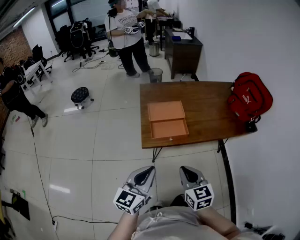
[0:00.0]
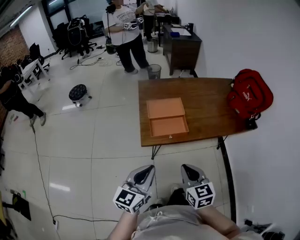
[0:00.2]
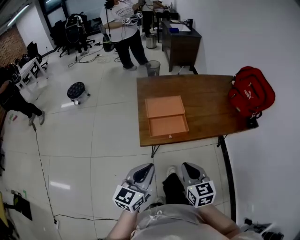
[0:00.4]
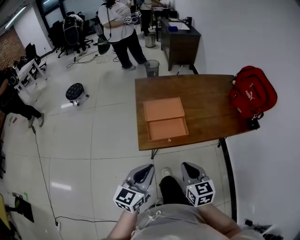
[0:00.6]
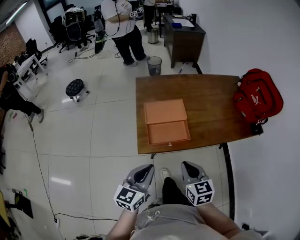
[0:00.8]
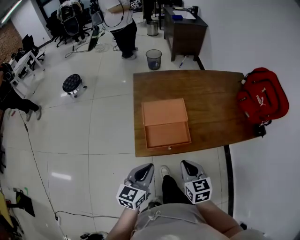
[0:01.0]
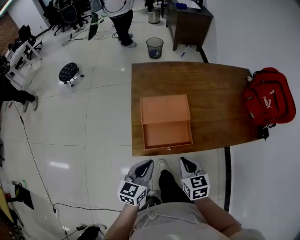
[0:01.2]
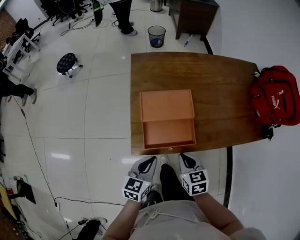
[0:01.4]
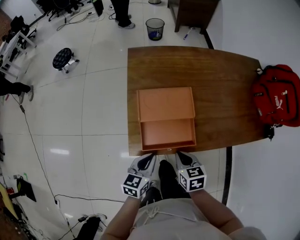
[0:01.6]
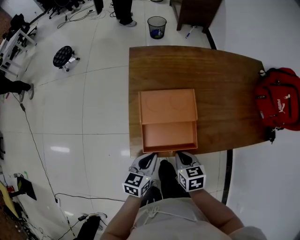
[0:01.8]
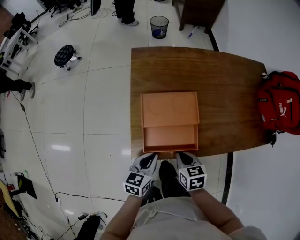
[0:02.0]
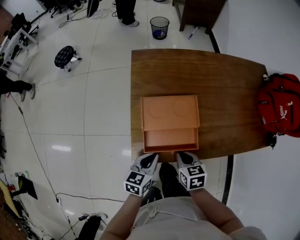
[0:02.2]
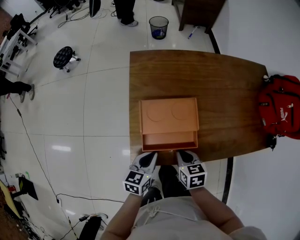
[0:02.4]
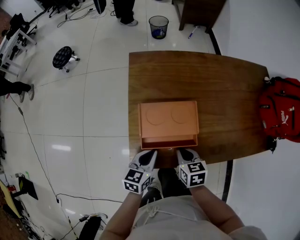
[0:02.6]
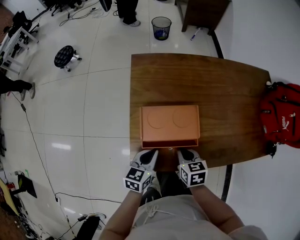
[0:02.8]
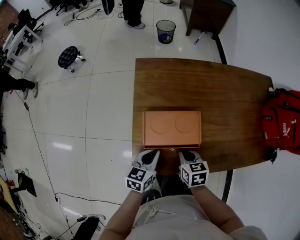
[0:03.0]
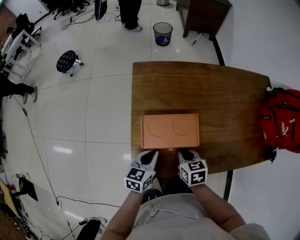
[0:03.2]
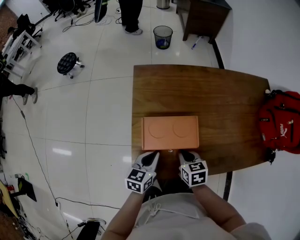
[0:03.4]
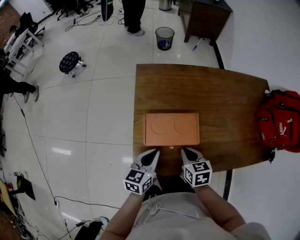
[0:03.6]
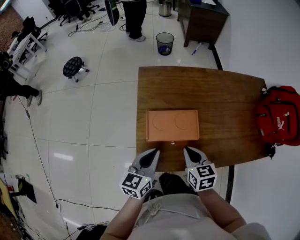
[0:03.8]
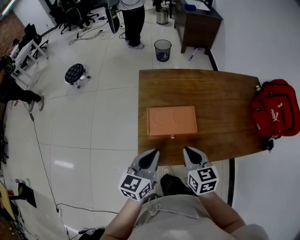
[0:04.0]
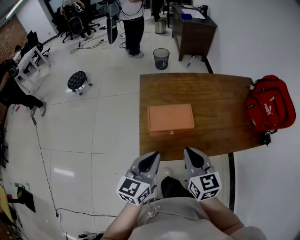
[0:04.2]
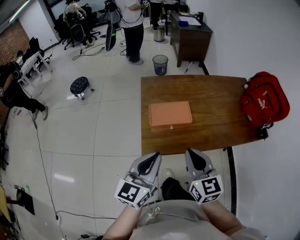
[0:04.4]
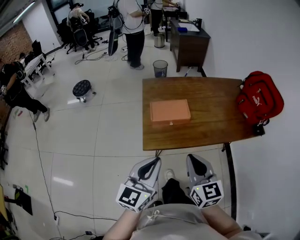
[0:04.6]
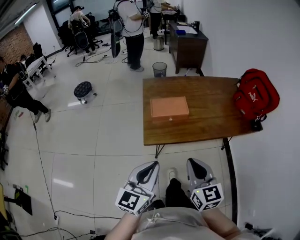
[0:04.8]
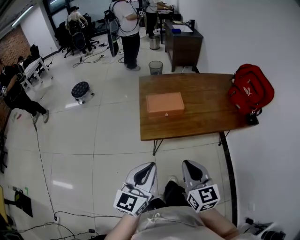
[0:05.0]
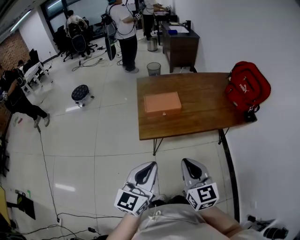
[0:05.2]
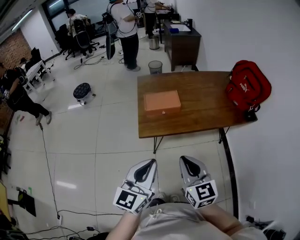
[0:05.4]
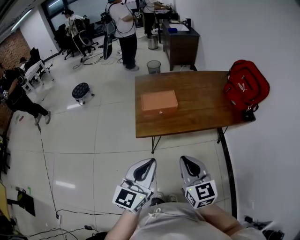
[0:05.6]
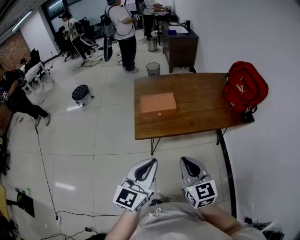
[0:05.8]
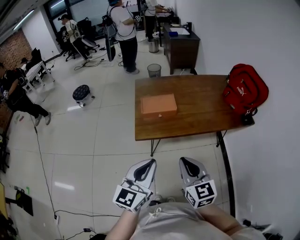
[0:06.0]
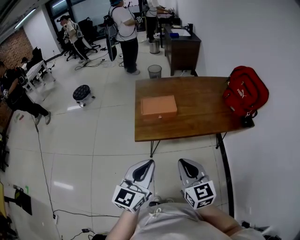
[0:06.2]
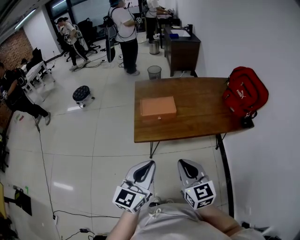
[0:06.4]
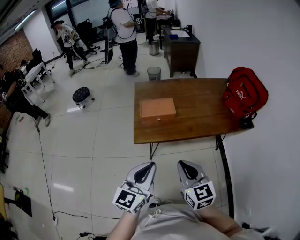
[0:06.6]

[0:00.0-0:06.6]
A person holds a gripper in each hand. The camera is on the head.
0:00.0 to 0:01.6: The right gripper is displaced forward and downward by roughly 30 cm, and rotates about 30 degrees. Meanwhile the left gripper shifts roughly 30 cm downward and forward, and turns by approximately 30 degrees.
0:01.6 to 0:03.2: Both grippers travel together forward, approximately 15 cm.
0:03.2 to 0:05.0: Both grippers move backward and upward, some 40 cm. The right gripper tilts its fingers roughly 40 degrees upward, while the left gripper rotates roughly 30 degrees.
0:05.0 to 0:06.6: The left gripper heads to the right, covering roughly 5 cm.

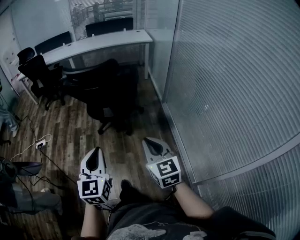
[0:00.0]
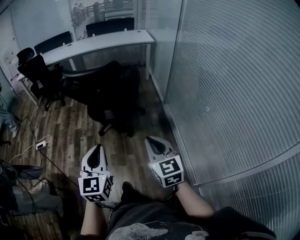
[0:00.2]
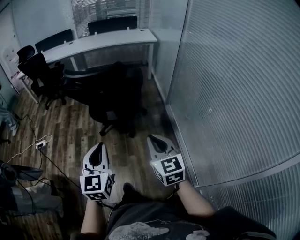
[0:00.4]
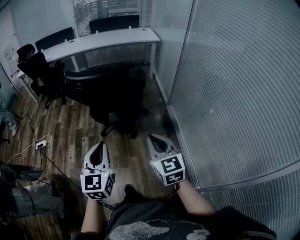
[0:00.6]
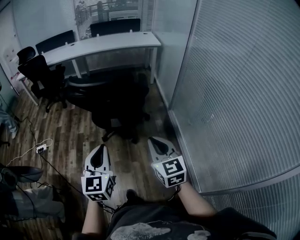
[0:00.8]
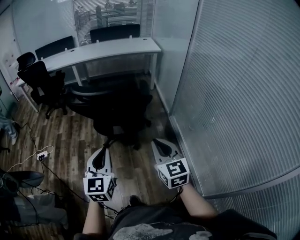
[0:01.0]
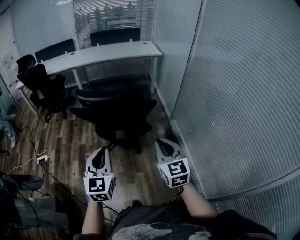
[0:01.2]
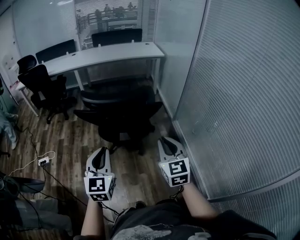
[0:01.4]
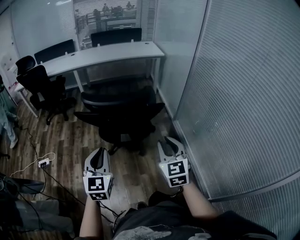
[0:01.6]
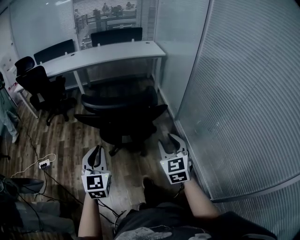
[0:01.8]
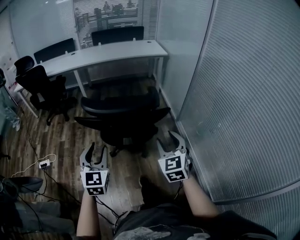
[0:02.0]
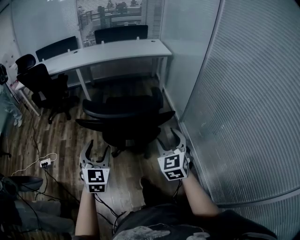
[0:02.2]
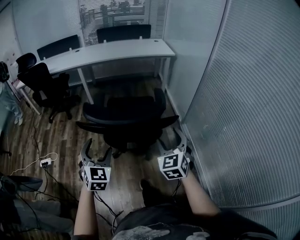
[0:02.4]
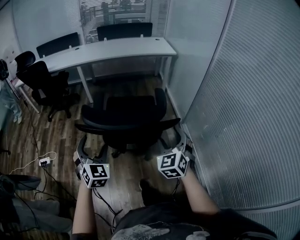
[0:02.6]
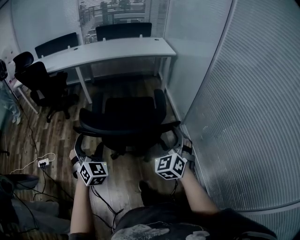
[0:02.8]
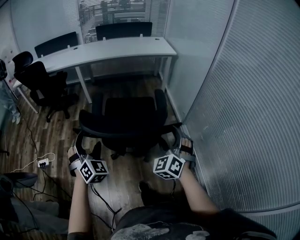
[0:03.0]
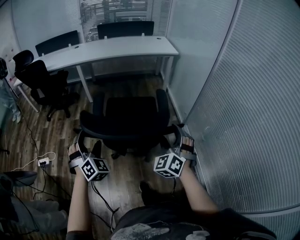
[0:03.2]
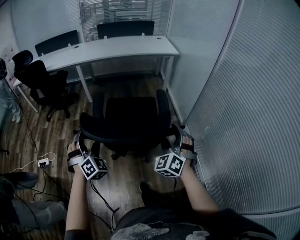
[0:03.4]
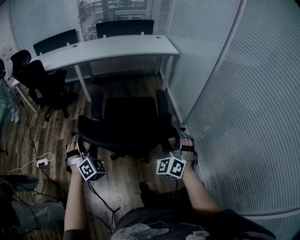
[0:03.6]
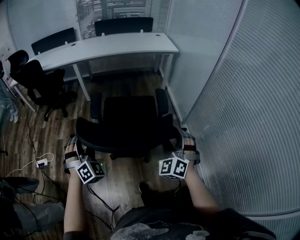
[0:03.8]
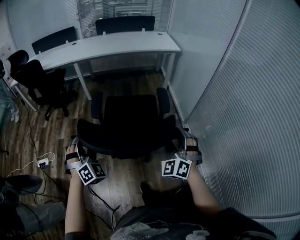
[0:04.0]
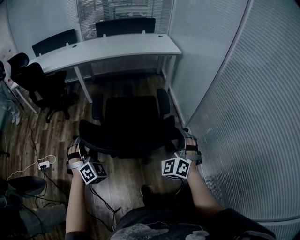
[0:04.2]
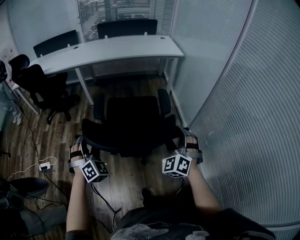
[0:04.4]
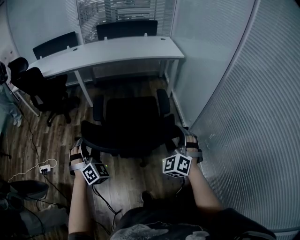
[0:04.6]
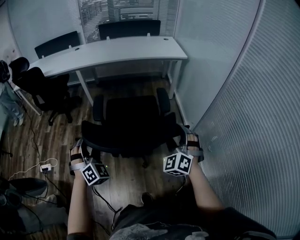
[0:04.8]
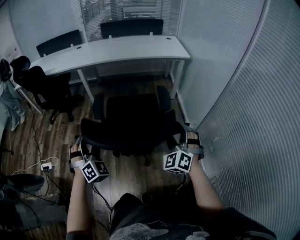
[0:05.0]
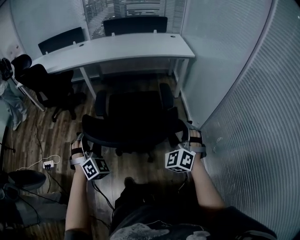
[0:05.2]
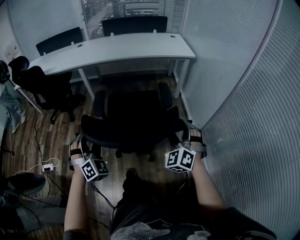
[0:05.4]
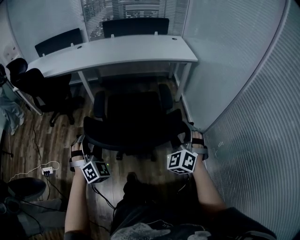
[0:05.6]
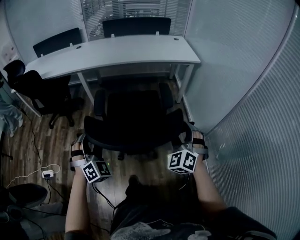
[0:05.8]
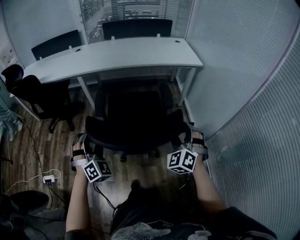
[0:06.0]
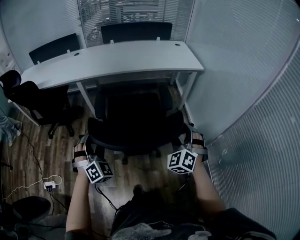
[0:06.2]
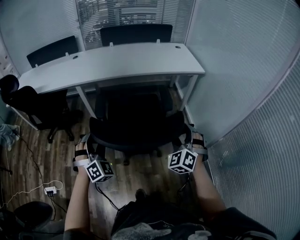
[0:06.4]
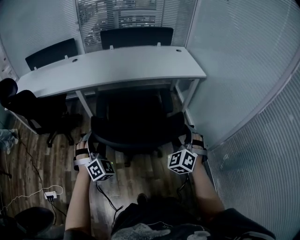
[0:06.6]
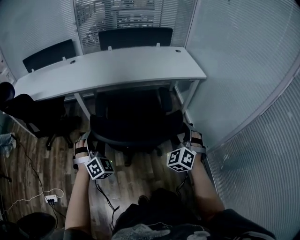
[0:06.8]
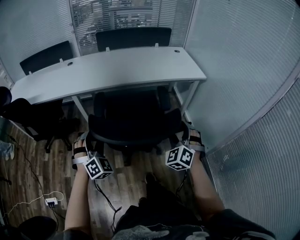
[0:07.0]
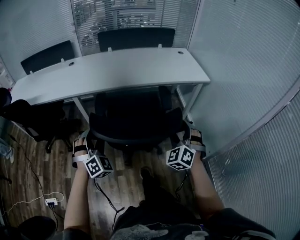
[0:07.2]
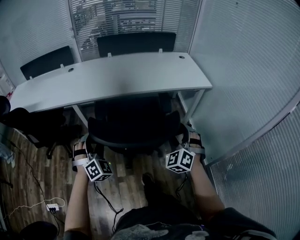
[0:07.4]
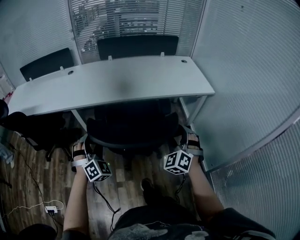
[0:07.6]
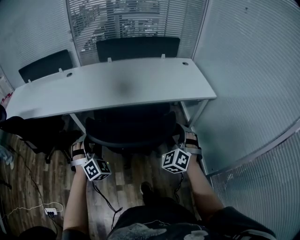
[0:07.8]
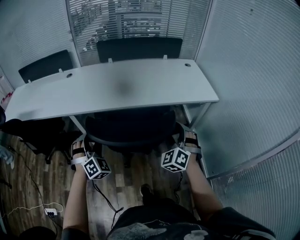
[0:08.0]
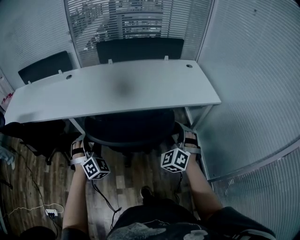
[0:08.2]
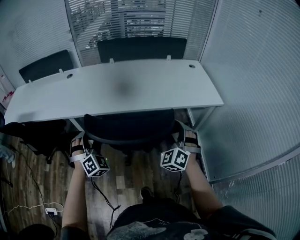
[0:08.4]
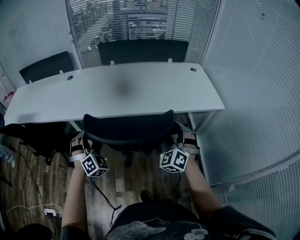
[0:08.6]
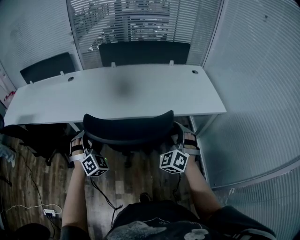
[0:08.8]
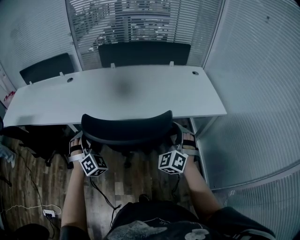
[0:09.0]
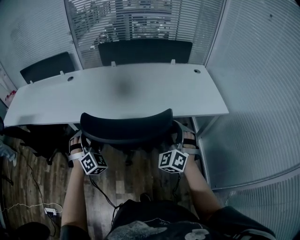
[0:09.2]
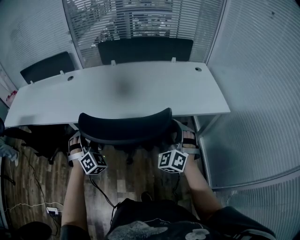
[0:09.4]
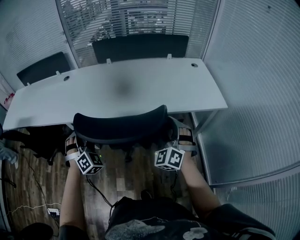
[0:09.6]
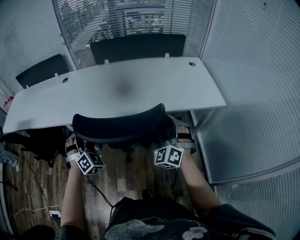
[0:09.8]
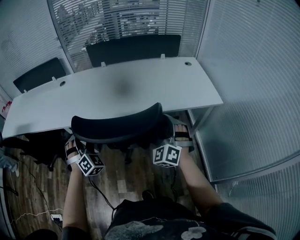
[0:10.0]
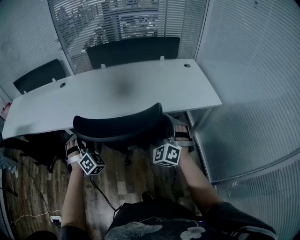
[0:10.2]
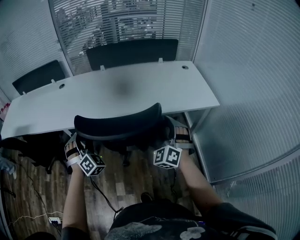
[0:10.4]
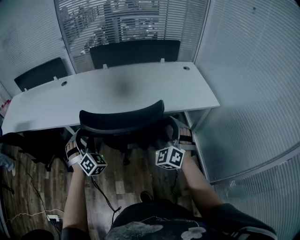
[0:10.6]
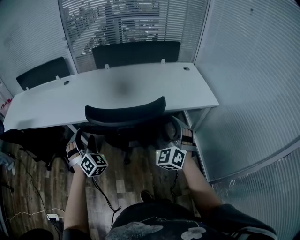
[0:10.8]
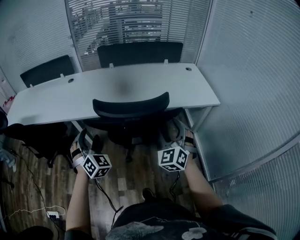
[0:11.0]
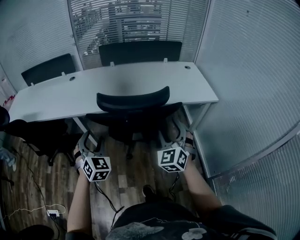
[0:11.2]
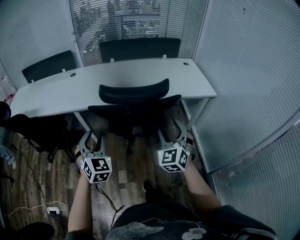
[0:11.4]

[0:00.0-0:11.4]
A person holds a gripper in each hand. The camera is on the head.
0:00.0 to 0:01.4: The right gripper heads forward, covering roughly 20 cm, while the left gripper goes roughly 25 cm forward and to the left.
0:01.4 to 0:02.8: The left gripper shifts about 25 cm forward and to the left, turns by approximately 40 degrees, and opens. Meanwhile the right gripper goes about 20 cm forward, rotates roughly 40 degrees, and opens.
0:02.8 to 0:04.2: The grippers both shift forward by approximately 10 cm. The left gripper swivels some 20 degrees.
0:04.2 to 0:05.6: The grippers both shift forward by roughly 20 cm.
0:05.6 to 0:07.2: The two grippers go approximately 35 cm forward.
0:07.2 to 0:08.6: Both grippers move forward, about 25 cm.
0:08.6 to 0:10.0: The right gripper moves forward, some 5 cm.
0:10.0 to 0:11.4: The two grippers go some 20 cm backward. The right gripper changes its angle by approximately 20 degrees. The left gripper swivels approximately 30 degrees.

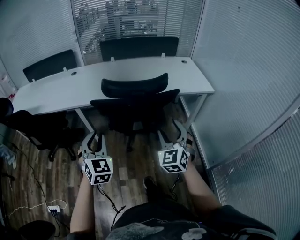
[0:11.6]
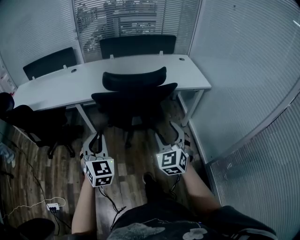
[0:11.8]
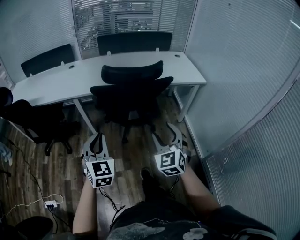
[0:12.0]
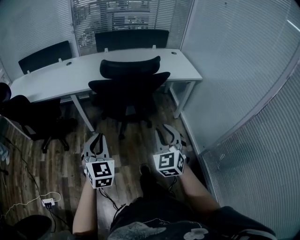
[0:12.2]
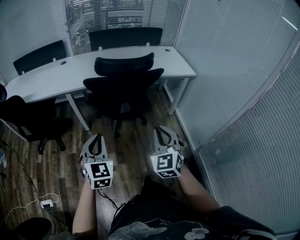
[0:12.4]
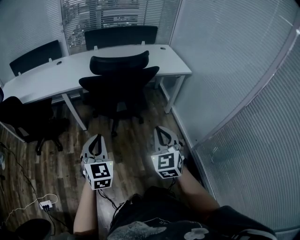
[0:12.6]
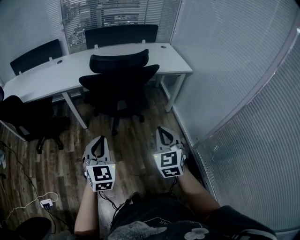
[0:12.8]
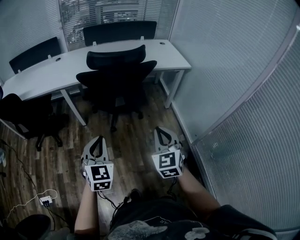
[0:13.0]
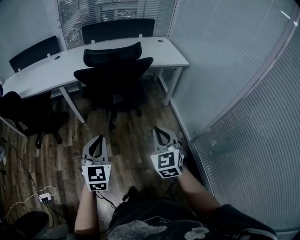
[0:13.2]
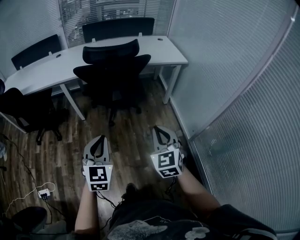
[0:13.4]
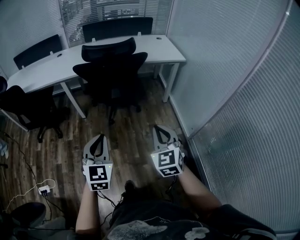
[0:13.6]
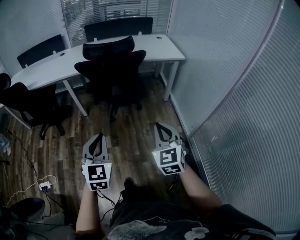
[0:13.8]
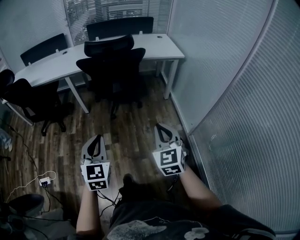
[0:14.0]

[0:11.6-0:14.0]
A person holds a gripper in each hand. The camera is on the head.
0:11.6 to 0:12.8: Both grippers travel together backward, about 20 cm. The right gripper closes.
0:12.8 to 0:14.0: Both grippers move backward and to the right, some 20 cm.

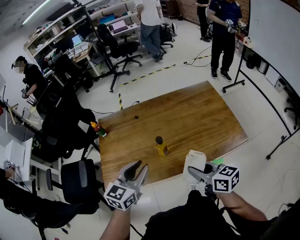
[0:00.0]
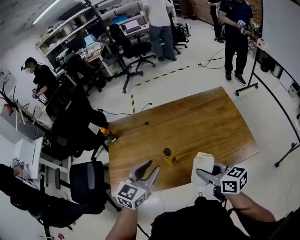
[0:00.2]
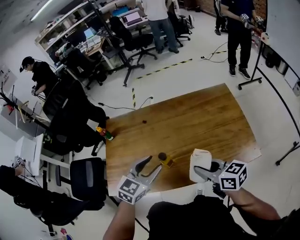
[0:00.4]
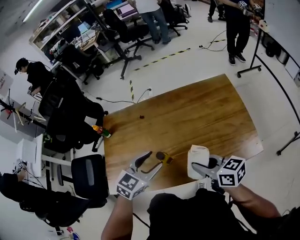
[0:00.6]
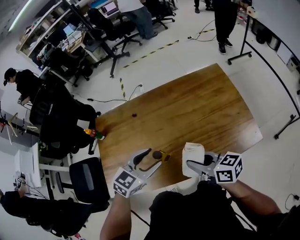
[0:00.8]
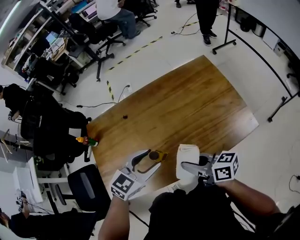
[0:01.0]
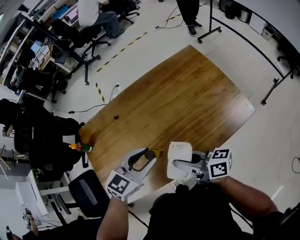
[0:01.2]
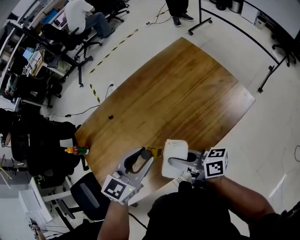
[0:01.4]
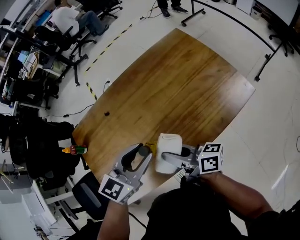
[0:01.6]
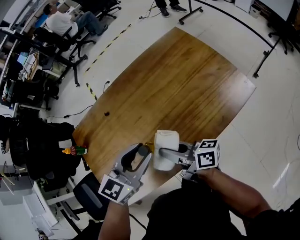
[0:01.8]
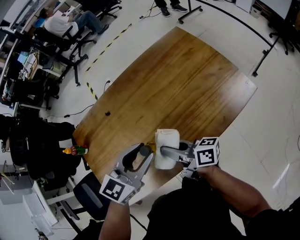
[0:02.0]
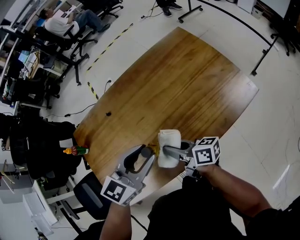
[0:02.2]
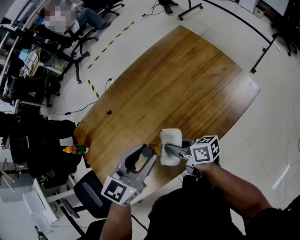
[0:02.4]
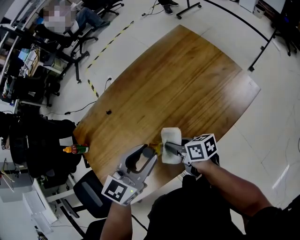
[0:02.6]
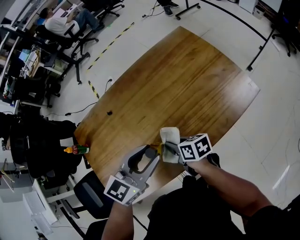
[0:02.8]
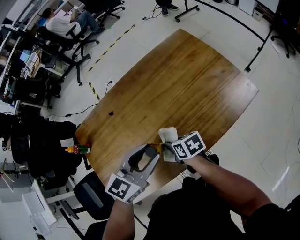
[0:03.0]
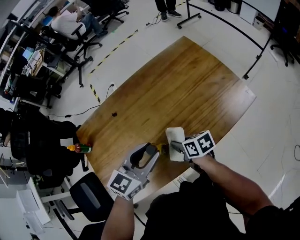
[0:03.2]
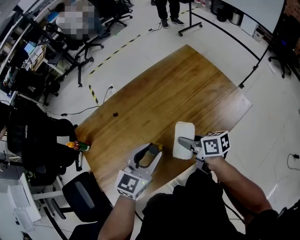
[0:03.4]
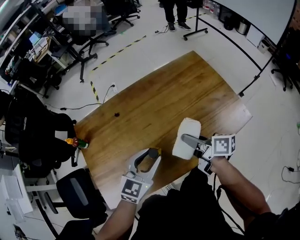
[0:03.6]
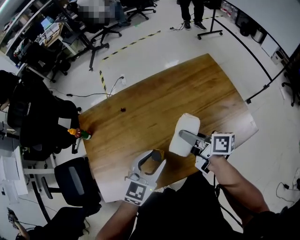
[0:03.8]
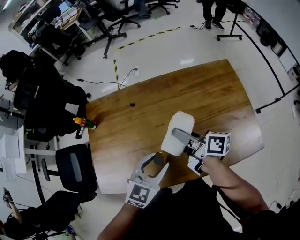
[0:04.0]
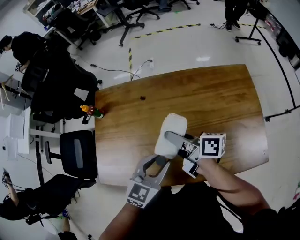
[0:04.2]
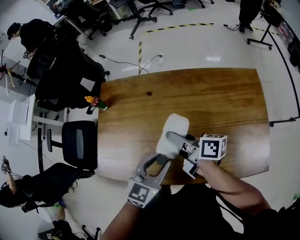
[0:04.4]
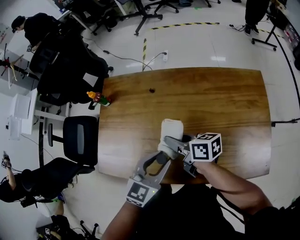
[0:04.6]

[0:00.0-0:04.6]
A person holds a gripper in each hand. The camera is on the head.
0:00.0 to 0:01.6: The left gripper moves forward, to the right and downward, about 15 cm, and swivels some 30 degrees. Meanwhile the right gripper shifts roughly 15 cm forward, downward and to the left, and rotates roughly 30 degrees.
0:01.6 to 0:03.0: The right gripper is displaced downward by some 15 cm, and tilts its fingers roughly 50 degrees downward.
0:03.0 to 0:04.6: The right gripper heads upward, covering approximately 10 cm, and rotates approximately 40 degrees, while the left gripper swivels about 40 degrees.
